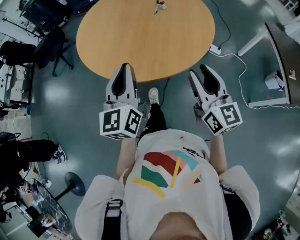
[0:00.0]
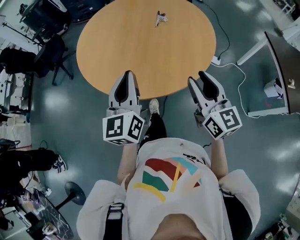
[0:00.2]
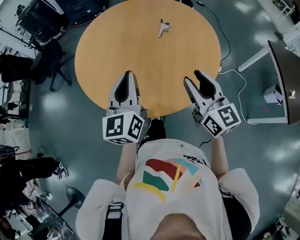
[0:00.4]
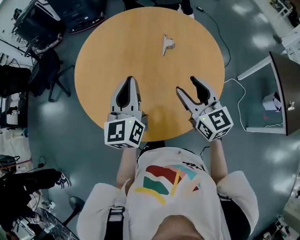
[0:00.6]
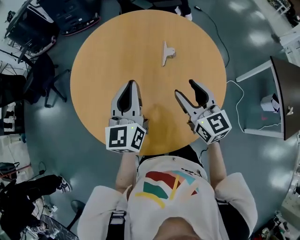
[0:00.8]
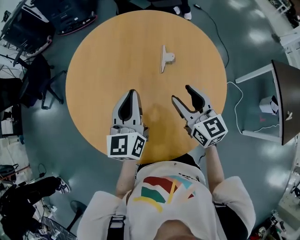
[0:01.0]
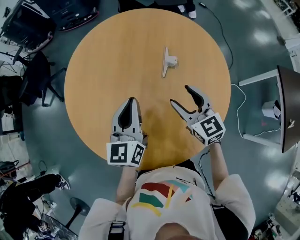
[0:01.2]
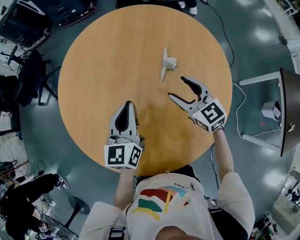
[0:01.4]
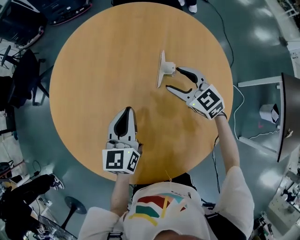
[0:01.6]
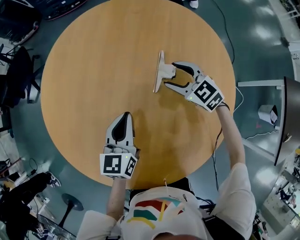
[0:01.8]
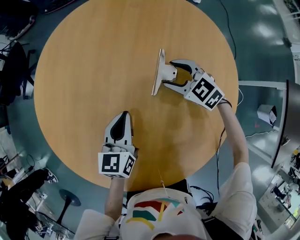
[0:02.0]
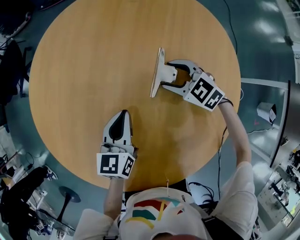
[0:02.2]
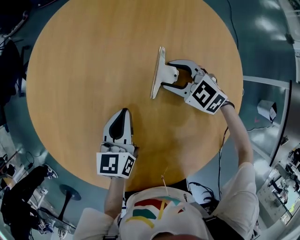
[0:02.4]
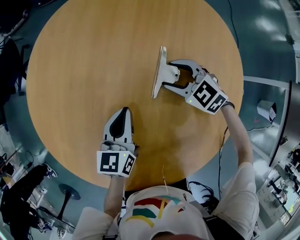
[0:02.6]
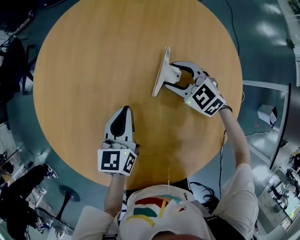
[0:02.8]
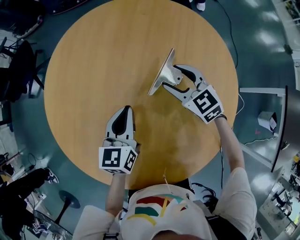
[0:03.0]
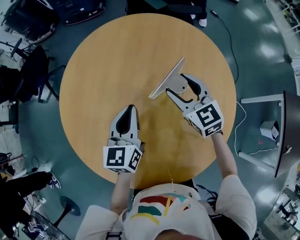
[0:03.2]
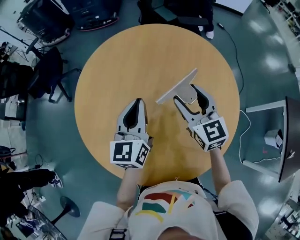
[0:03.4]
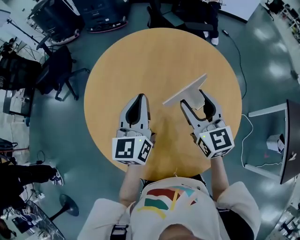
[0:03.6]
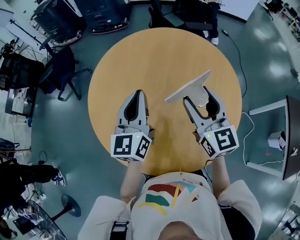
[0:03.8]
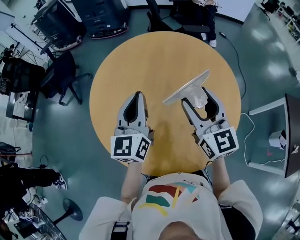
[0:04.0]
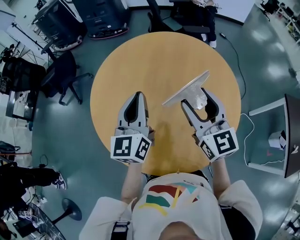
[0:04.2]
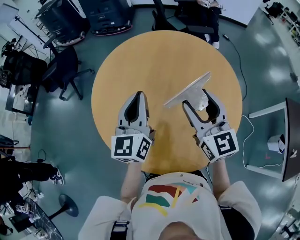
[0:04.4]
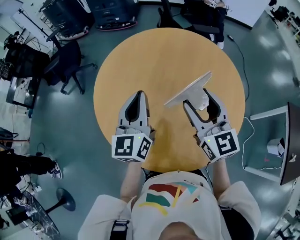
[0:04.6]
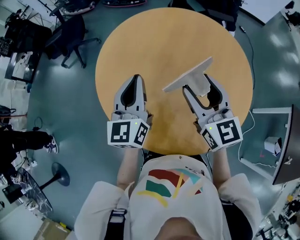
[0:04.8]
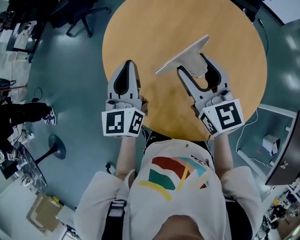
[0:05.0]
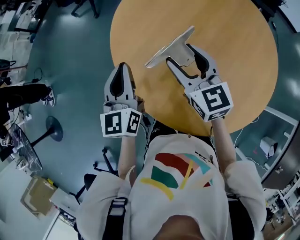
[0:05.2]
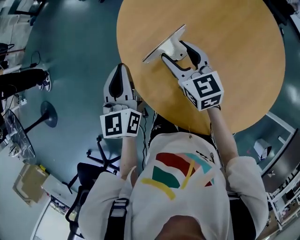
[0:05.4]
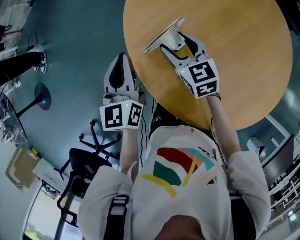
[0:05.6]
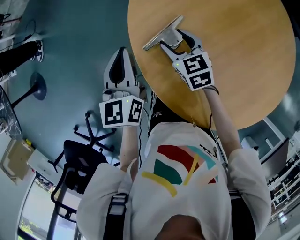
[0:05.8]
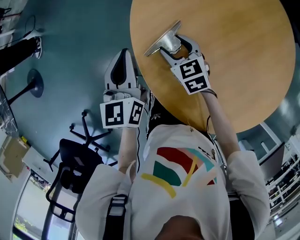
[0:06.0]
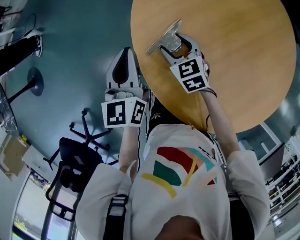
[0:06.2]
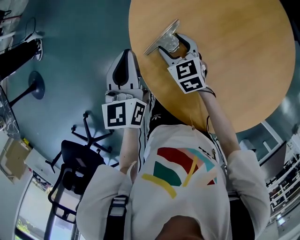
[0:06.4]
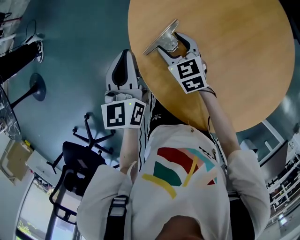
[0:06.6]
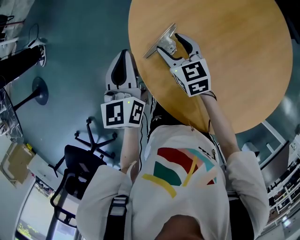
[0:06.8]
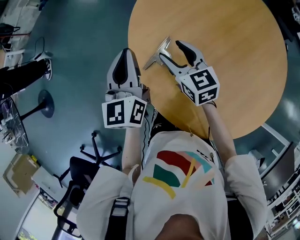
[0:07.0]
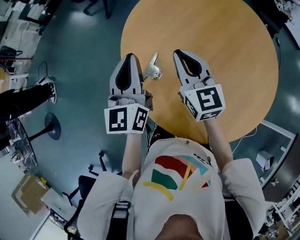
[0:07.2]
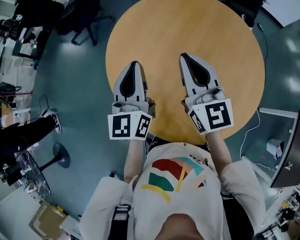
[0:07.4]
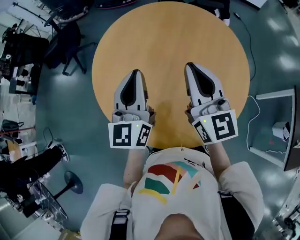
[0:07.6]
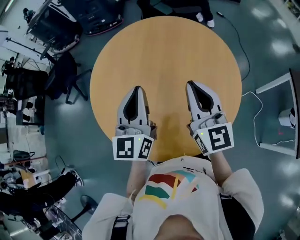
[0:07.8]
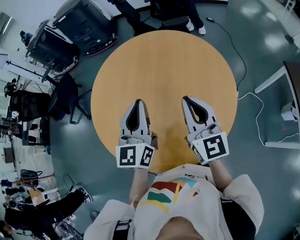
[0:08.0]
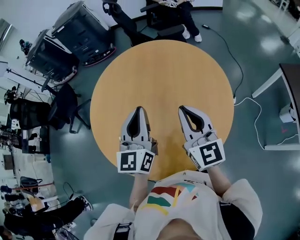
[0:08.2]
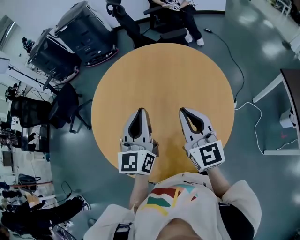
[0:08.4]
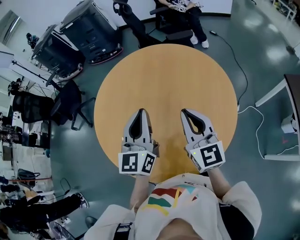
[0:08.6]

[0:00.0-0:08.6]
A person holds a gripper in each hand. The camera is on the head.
0:00.0 to 0:01.4: The two grippers travel together, forward, approximately 60 cm. The right gripper swivels roughly 30 degrees, and opens up.
0:01.4 to 0:02.8: The left gripper heads downward, forward and to the right, covering about 20 cm; the right gripper travels downward and forward by about 25 cm, and changes its angle by about 30 degrees.
0:02.8 to 0:04.4: The right gripper is displaced upward and backward by some 40 cm, and angles its fingers upward, by about 40 degrees, while the left gripper moves upward, backward and to the left, roughly 35 cm, and swivels about 30 degrees.
0:04.4 to 0:05.8: The right gripper shifts about 35 cm downward, and tips its fingers downward by about 40 degrees. The left gripper shifts by roughly 40 cm, and rotates approximately 50 degrees.
0:05.8 to 0:07.2: The left gripper heads upward and to the right, covering roughly 15 cm, and changes its angle by approximately 20 degrees. The right gripper goes approximately 20 cm upward, rotates approximately 30 degrees, and closes up.
0:07.2 to 0:08.6: The left gripper changes place by approximately 40 cm, and swivels about 40 degrees, while the right gripper changes place by approximately 40 cm, and swivels some 40 degrees.

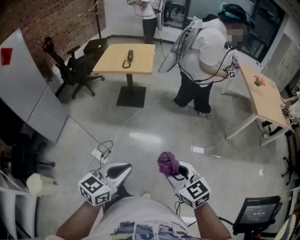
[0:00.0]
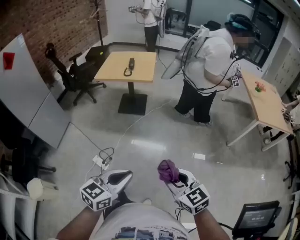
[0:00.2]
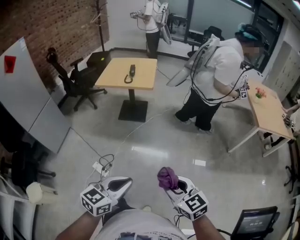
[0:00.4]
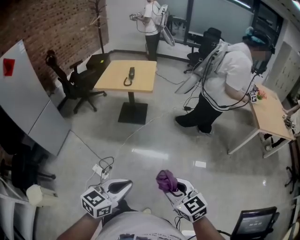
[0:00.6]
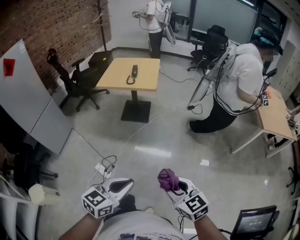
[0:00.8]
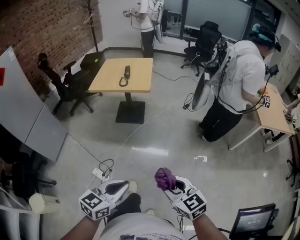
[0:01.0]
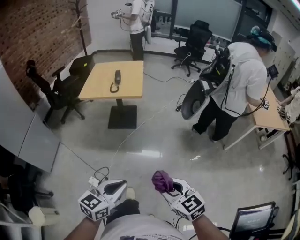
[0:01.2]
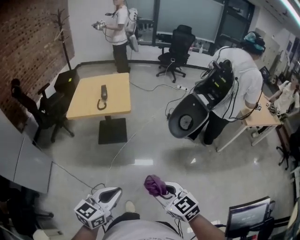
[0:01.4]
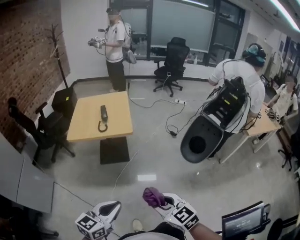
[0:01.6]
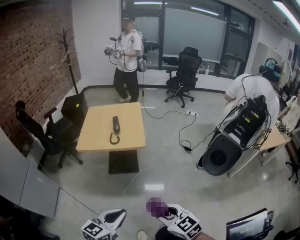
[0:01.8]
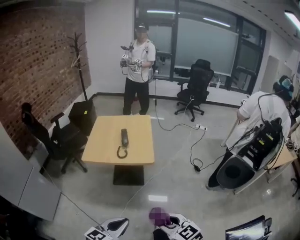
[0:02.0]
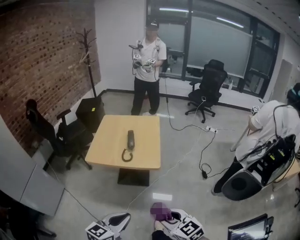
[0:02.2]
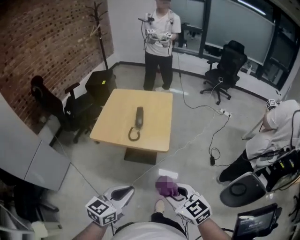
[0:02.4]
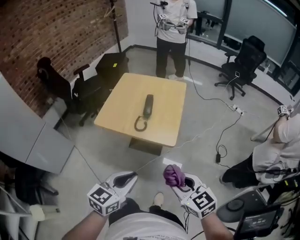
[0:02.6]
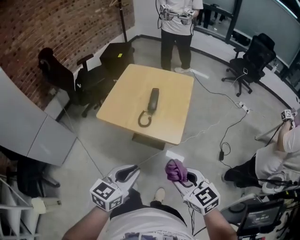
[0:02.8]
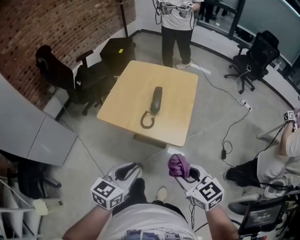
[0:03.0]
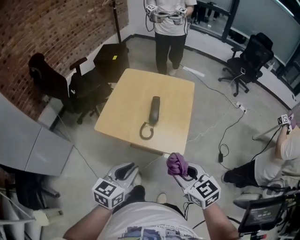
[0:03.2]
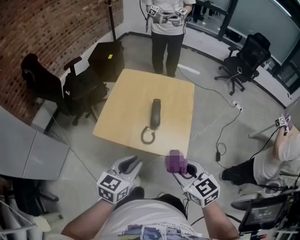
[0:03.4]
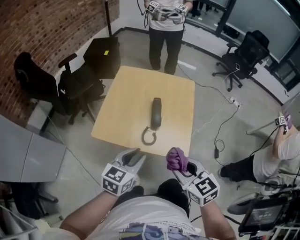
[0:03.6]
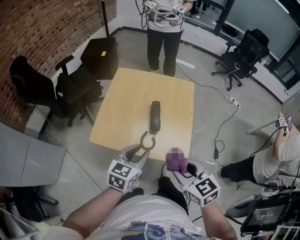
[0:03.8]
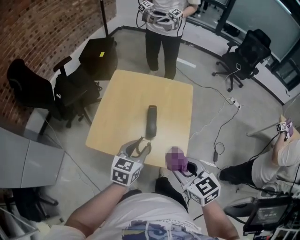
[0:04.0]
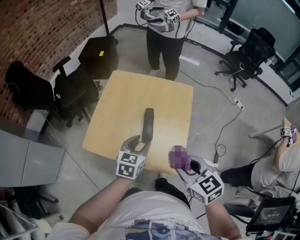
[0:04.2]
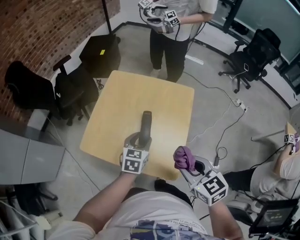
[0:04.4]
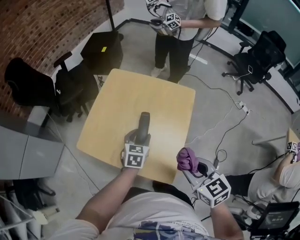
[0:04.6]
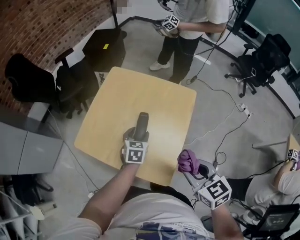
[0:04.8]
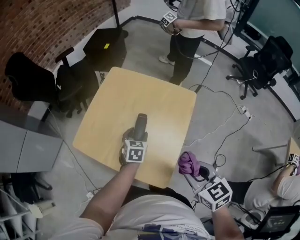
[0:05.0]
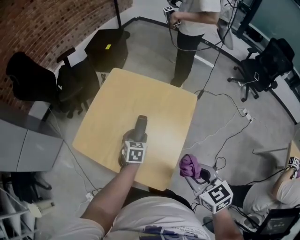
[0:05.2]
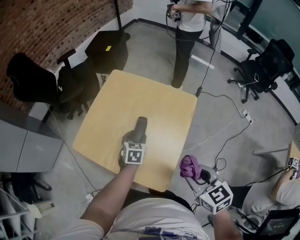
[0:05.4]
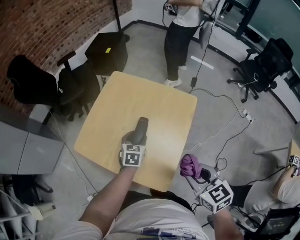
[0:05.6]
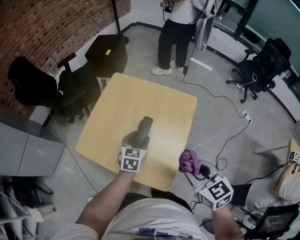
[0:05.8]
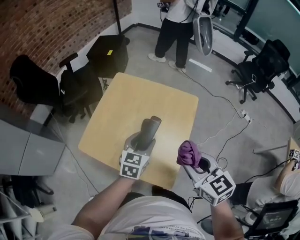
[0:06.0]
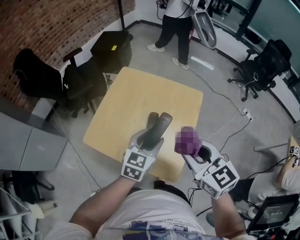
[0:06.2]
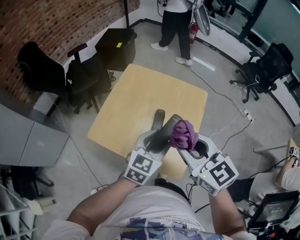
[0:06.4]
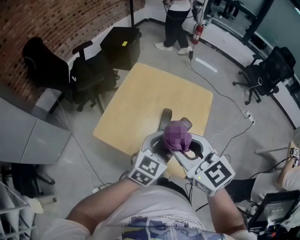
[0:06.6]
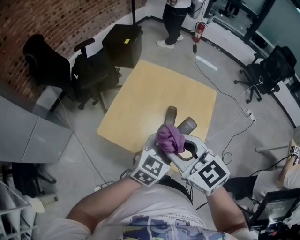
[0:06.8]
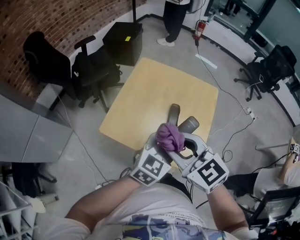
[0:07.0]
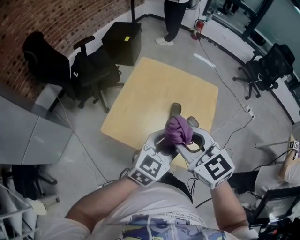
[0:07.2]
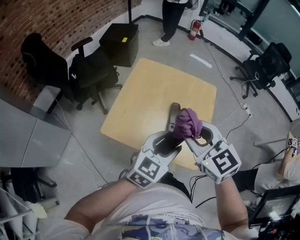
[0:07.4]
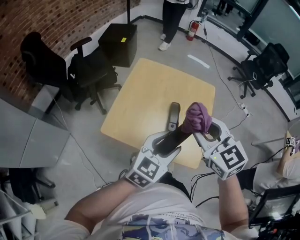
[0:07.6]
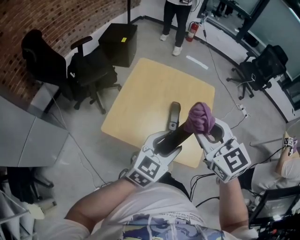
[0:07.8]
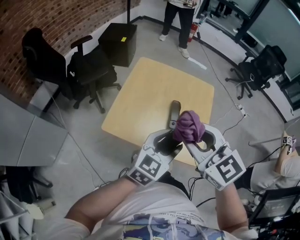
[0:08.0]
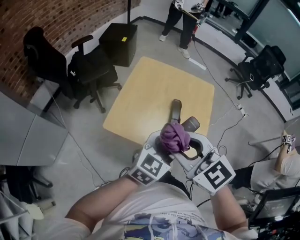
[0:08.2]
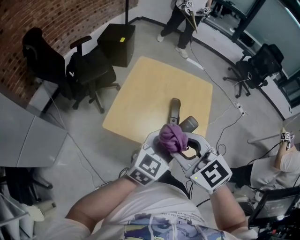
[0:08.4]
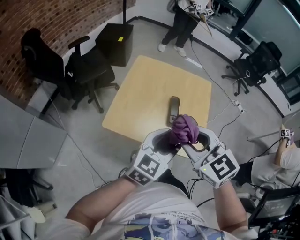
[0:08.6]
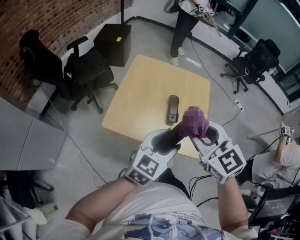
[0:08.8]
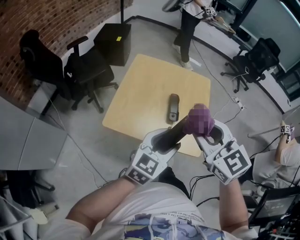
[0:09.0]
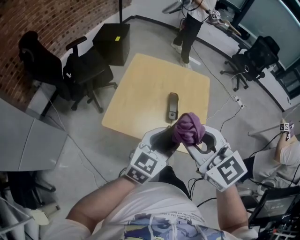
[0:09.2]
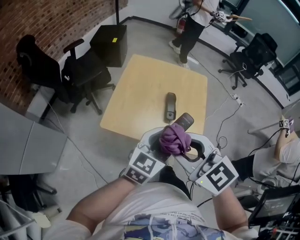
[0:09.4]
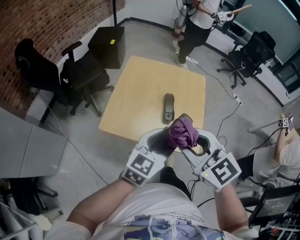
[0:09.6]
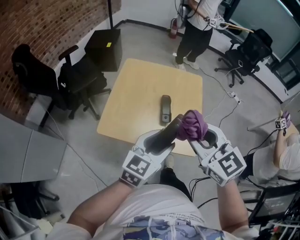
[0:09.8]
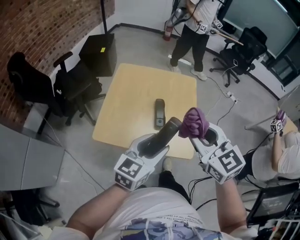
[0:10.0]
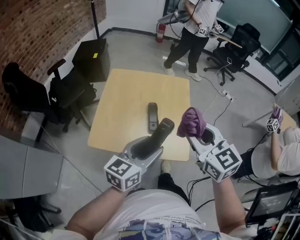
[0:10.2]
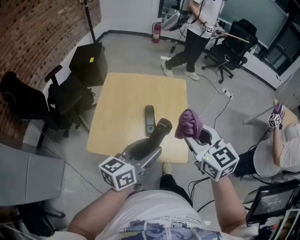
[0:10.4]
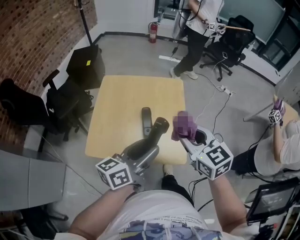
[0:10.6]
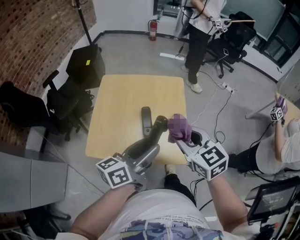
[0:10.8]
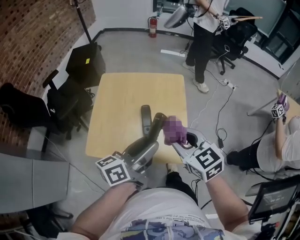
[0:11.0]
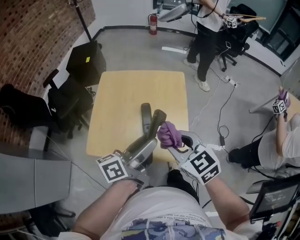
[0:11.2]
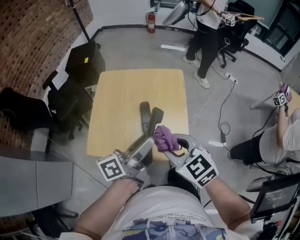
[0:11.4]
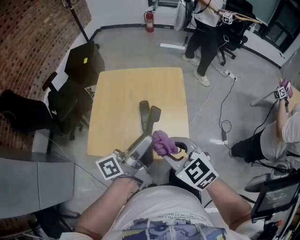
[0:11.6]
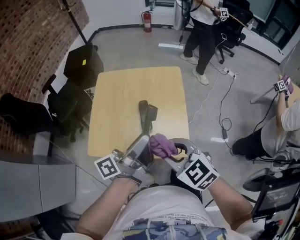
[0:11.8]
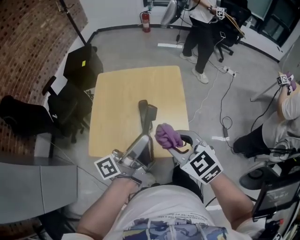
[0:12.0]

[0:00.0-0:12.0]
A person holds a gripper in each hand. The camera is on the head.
0:00.0 to 0:01.6: The left gripper heads forward, covering some 20 cm. Meanwhile the right gripper travels forward and to the left by about 20 cm.
0:01.6 to 0:03.0: Both grippers travel together forward, approximately 35 cm. The left gripper swivels about 30 degrees.
0:03.0 to 0:04.4: The right gripper heads forward, covering approximately 20 cm; the left gripper is displaced forward by about 30 cm, and opens its fingers.
0:04.4 to 0:06.0: The right gripper travels forward by about 5 cm. The left gripper travels downward and back again, roughly 10 cm each way.
0:06.0 to 0:07.6: The right gripper heads to the left and upward, covering approximately 15 cm, while the left gripper travels backward and upward by some 15 cm, and turns by roughly 30 degrees.
0:07.6 to 0:09.0: The right gripper is displaced backward by some 5 cm.
0:09.0 to 0:10.4: The left gripper turns by approximately 30 degrees. The right gripper moves to the right, about 10 cm.
0:10.4 to 0:12.0: The right gripper goes approximately 5 cm downward. Meanwhile the left gripper turns by about 40 degrees.

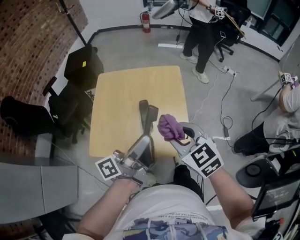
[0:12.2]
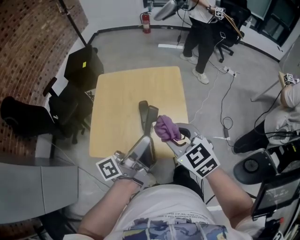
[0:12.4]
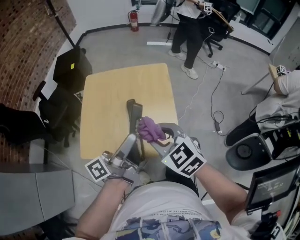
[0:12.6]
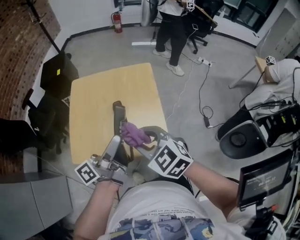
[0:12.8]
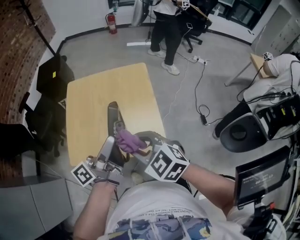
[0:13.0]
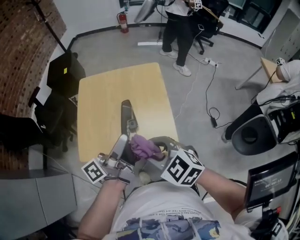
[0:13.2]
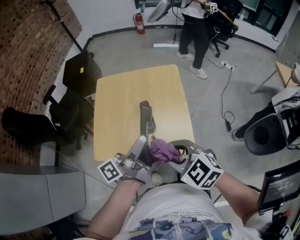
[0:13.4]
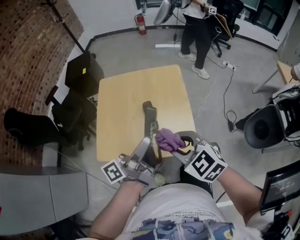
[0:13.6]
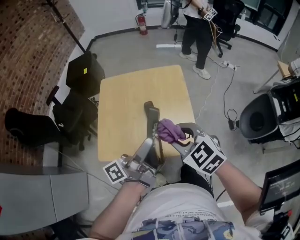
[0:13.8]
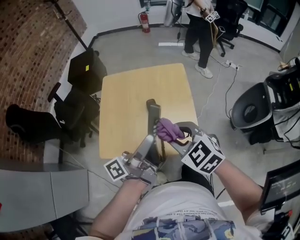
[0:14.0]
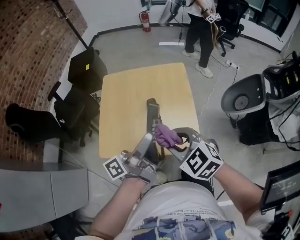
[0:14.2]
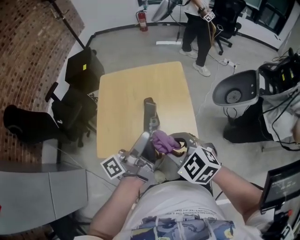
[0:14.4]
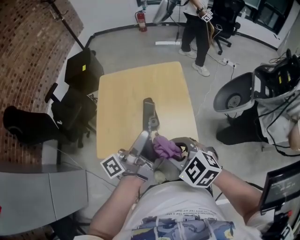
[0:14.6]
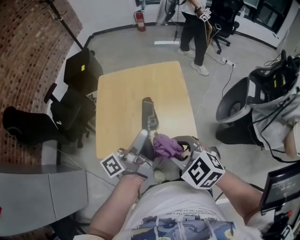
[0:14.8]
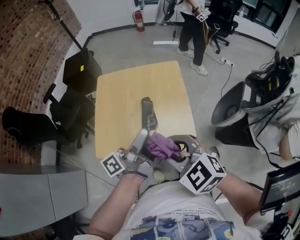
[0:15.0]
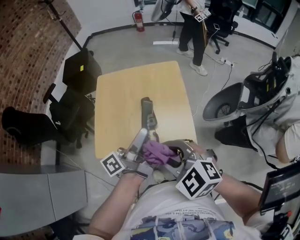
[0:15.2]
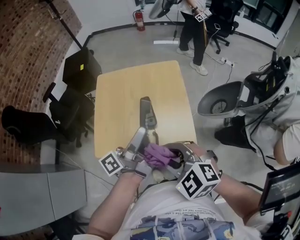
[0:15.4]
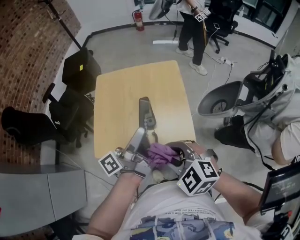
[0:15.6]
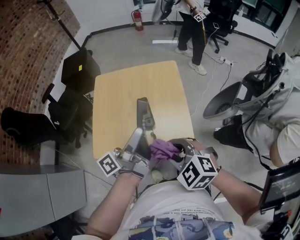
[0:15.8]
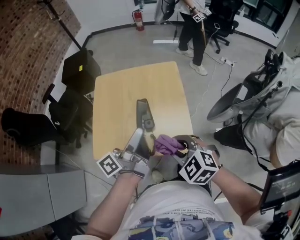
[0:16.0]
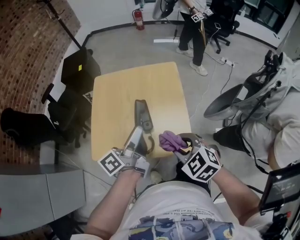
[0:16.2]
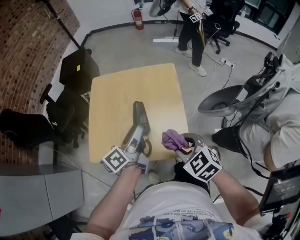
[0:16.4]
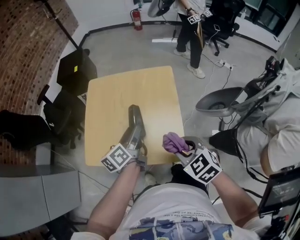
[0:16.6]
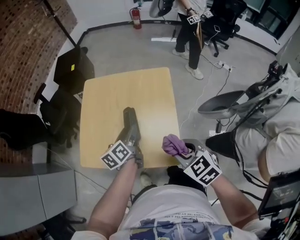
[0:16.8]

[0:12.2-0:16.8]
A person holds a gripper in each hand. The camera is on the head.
0:13.8 to 0:15.2: The right gripper travels backward by some 5 cm.
0:15.2 to 0:16.8: The left gripper goes approximately 20 cm downward and forward, and angles its fingers downward, by approximately 40 degrees, while the right gripper heads to the right and downward, covering some 20 cm, and swivels approximately 20 degrees.
